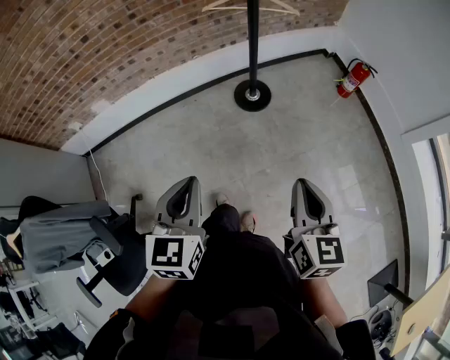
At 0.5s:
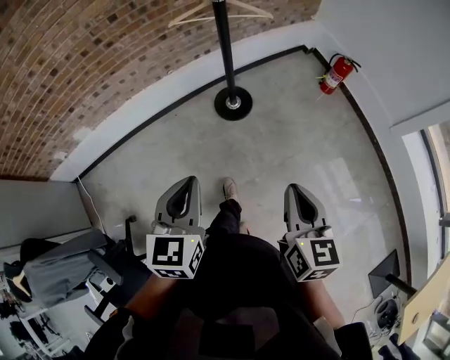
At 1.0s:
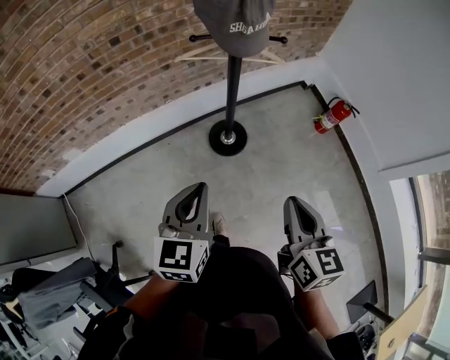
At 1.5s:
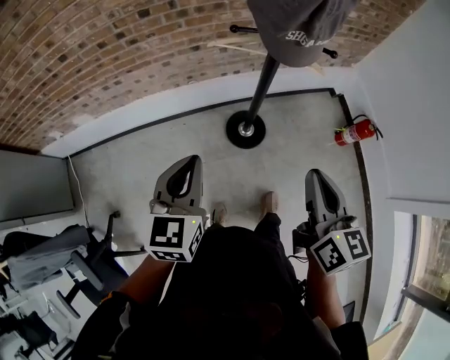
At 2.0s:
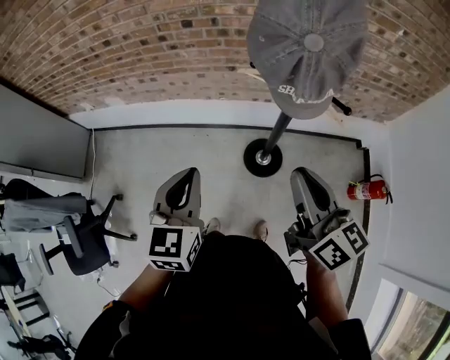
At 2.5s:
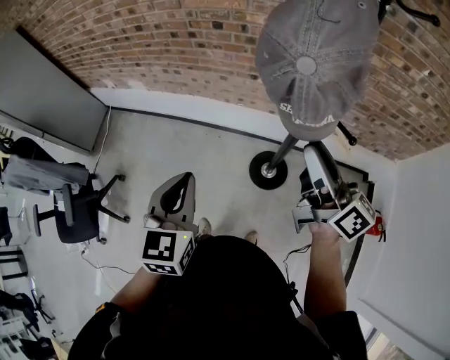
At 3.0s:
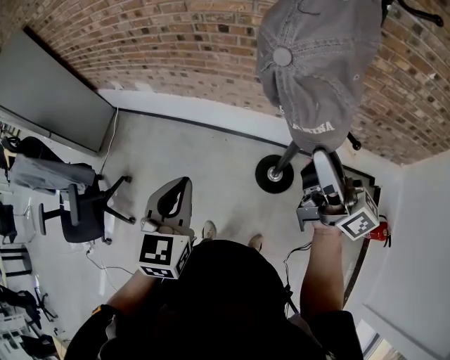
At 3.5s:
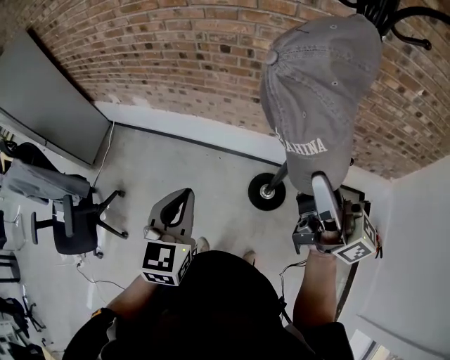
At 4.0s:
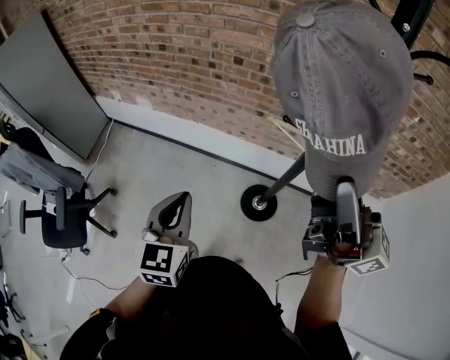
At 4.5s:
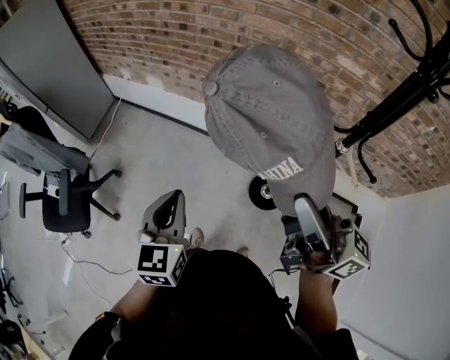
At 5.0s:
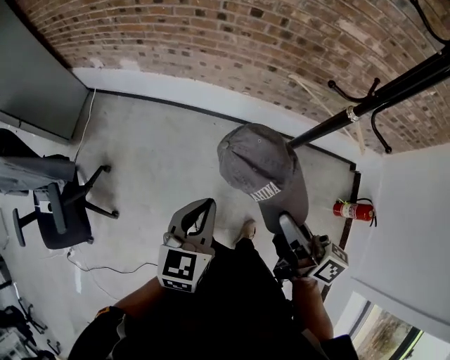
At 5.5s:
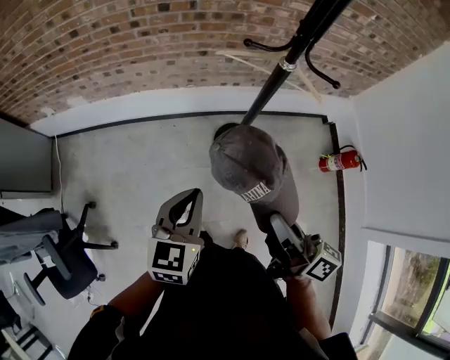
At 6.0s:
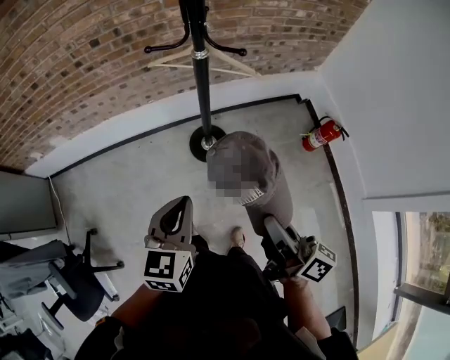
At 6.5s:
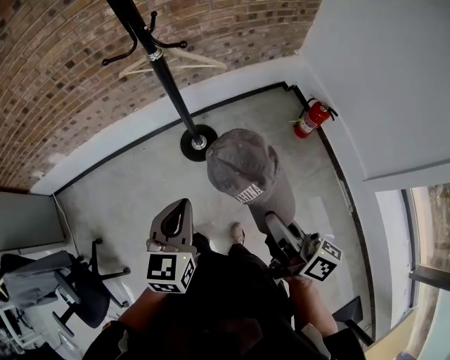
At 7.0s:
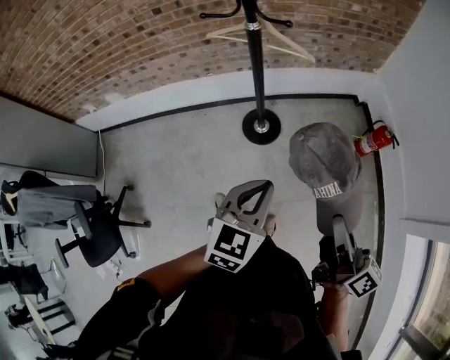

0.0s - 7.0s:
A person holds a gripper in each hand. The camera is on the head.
0.0s - 2.0s: Both grippers are carried some 50 cm. The left gripper swivels about 20 degrees, while the right gripper swivels approximately 50 degrees.
2.0s - 3.5s: The right gripper travels upward by some 10 cm, points its fingers roughly 30 degrees further upward, and opens and closes again.
3.5s - 5.0s: The left gripper moves to the left and downward, approximately 15 cm. Meanwhile the right gripper heads to the left and downward, covering roughly 25 cm, and tips its fingers downward by some 30 degrees.
5.0s - 7.0s: The pair of grippers is taken some 40 cm. The left gripper changes its angle by approximately 30 degrees, while the right gripper turns by approximately 30 degrees.

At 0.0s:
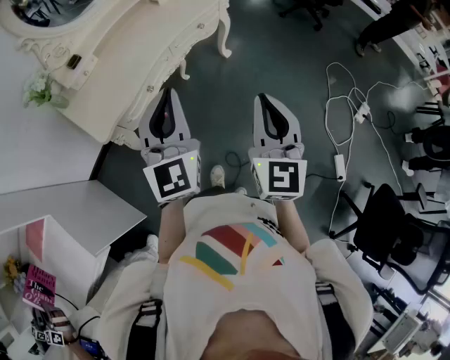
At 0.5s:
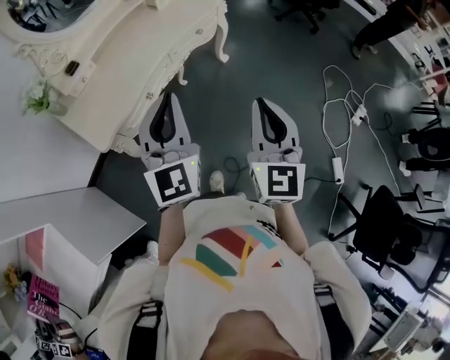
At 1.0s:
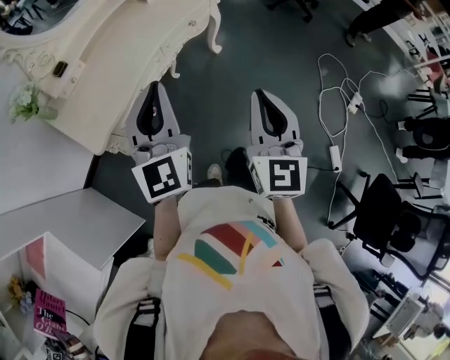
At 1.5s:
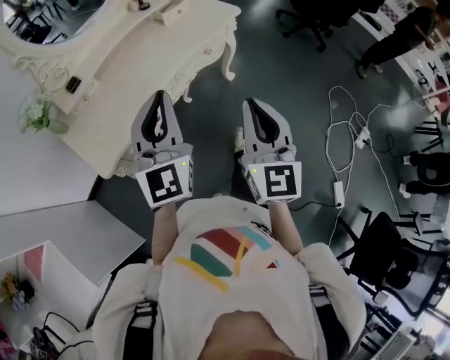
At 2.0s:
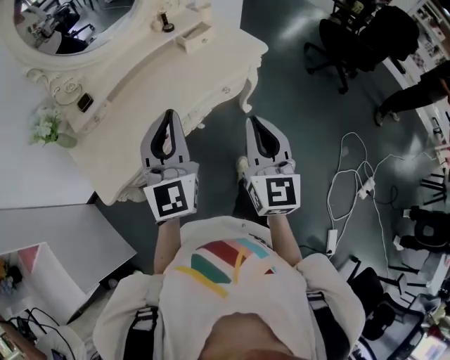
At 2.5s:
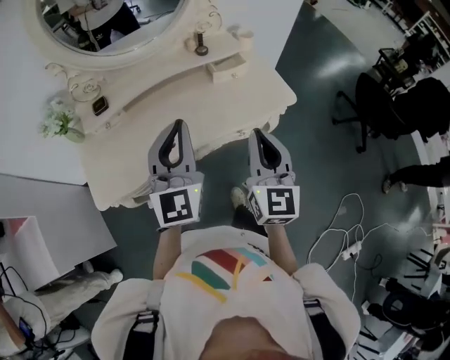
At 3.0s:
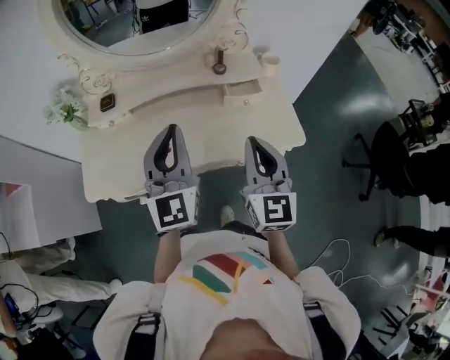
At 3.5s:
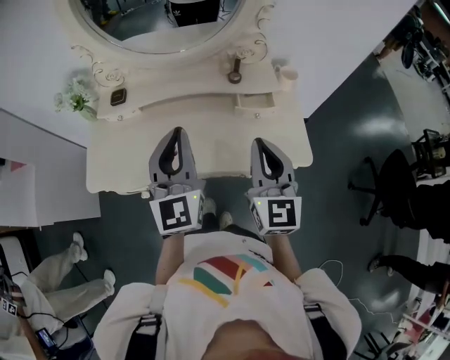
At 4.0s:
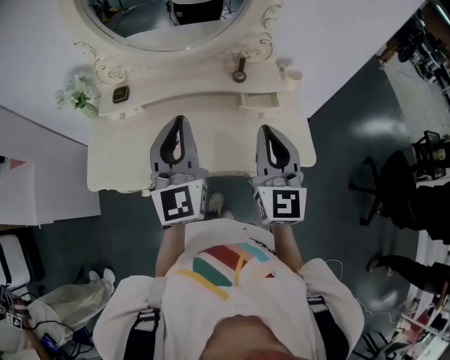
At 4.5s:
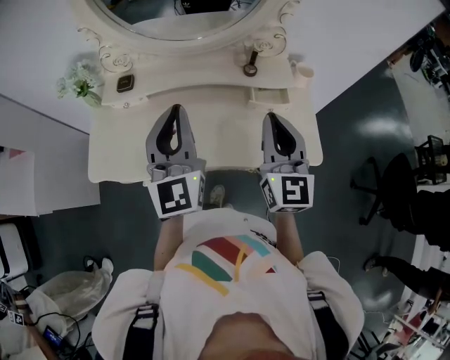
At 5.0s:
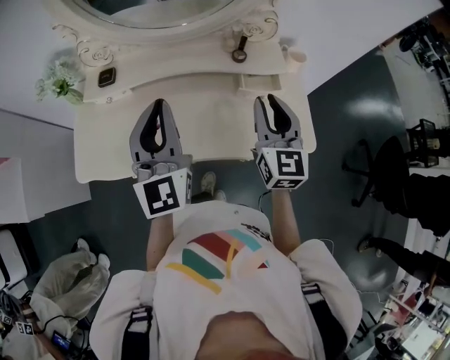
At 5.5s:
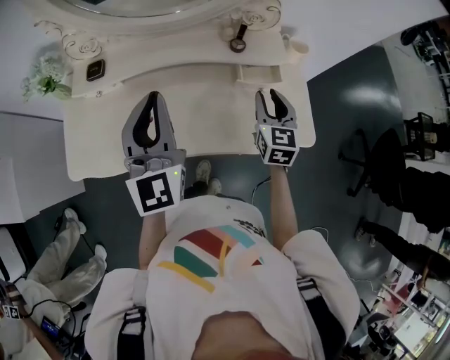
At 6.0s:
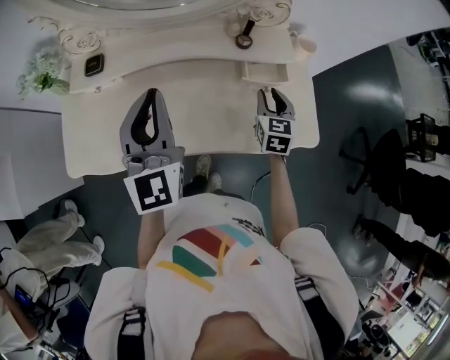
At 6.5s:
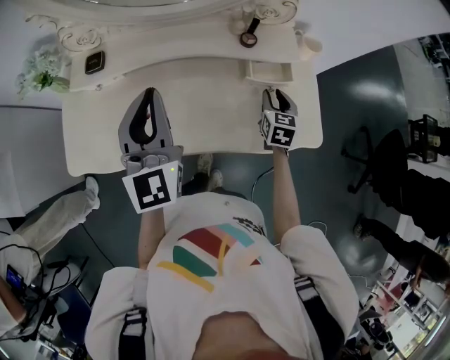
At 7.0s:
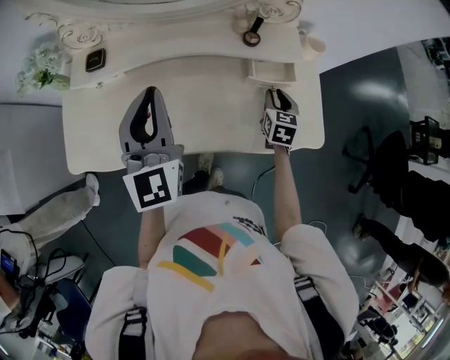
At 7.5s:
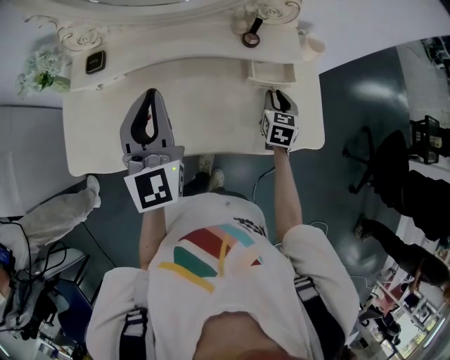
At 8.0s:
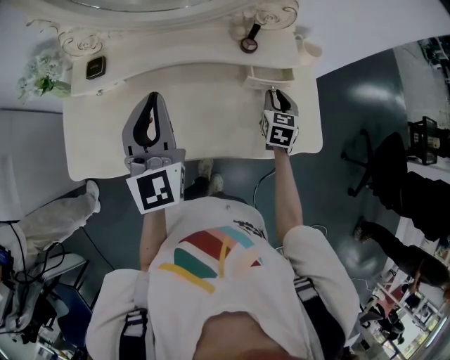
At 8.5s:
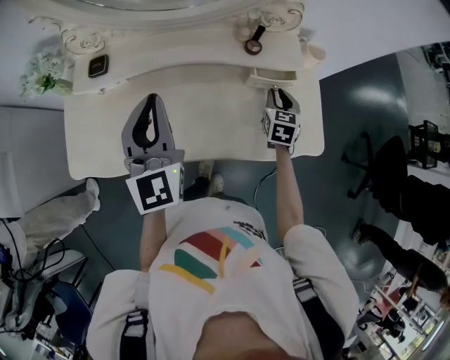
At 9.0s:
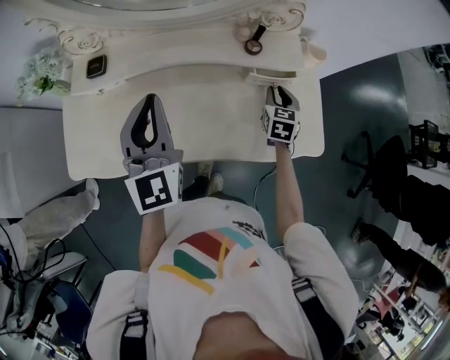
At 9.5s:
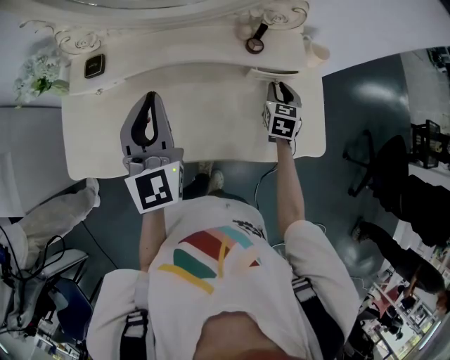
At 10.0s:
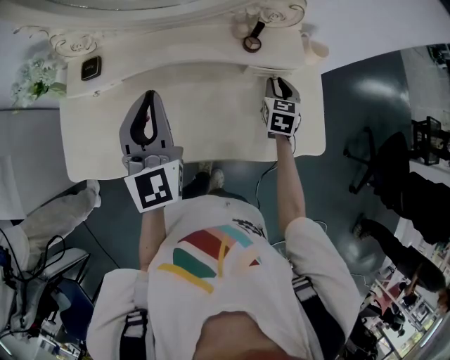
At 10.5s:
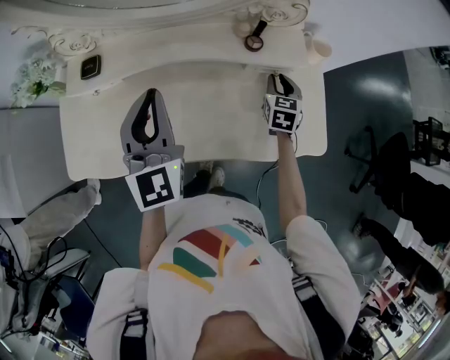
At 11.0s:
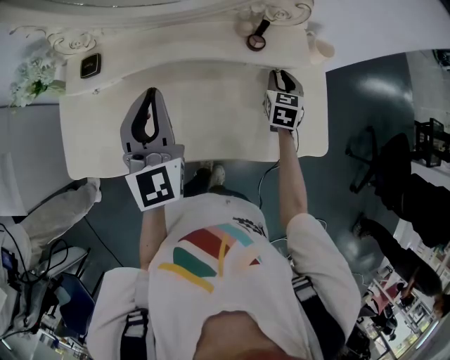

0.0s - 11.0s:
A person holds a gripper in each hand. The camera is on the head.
0.0s - 2.0s: The two grippers go roughly 25 cm forward.
2.0s - 3.5s: The left gripper ends up about 20 cm from where it was, and changes its angle by about 40 degrees. Meanwhile the right gripper ends up roughly 30 cm from where it was, and turns by roughly 40 degrees.
3.5s - 5.5s: The left gripper shifts approximately 10 cm forward; the right gripper heads downward and forward, covering about 20 cm, swivels roughly 20 degrees, and opens up.
5.5s - 7.5s: The right gripper shifts approximately 10 cm downward.
7.5s - 9.0s: The grippers move only a little.
9.0s - 11.0s: The grippers stay close to where they were, moving slightly.

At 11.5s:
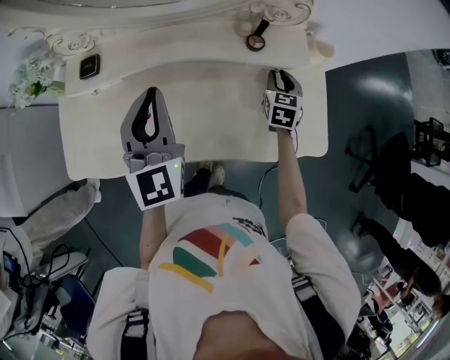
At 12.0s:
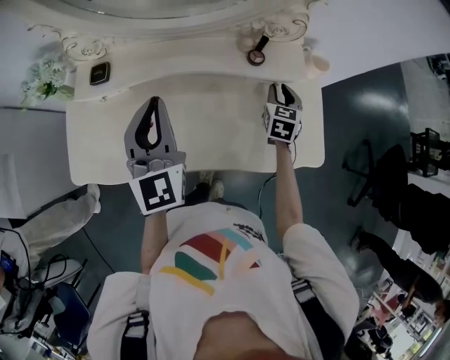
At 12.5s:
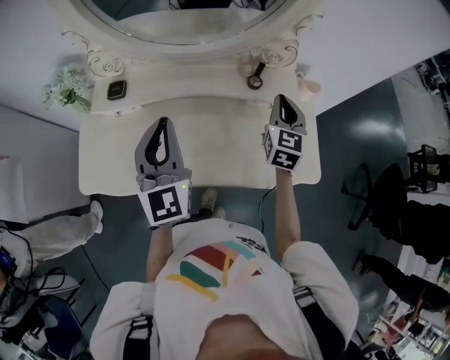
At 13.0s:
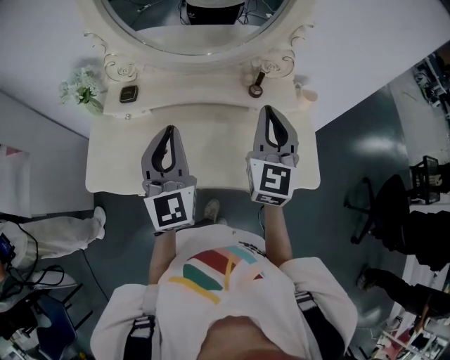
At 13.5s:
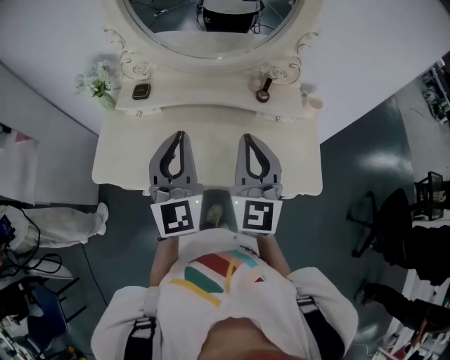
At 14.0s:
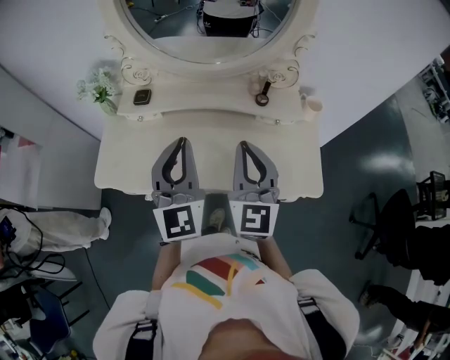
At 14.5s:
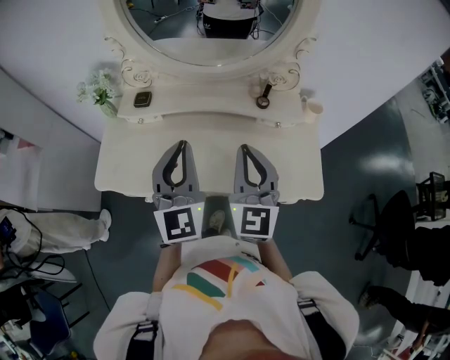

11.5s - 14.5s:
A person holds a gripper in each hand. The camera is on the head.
11.5s - 13.0s: The right gripper shifts approximately 35 cm upward and backward, and angles its fingers upward, by about 40 degrees. Meanwhile the left gripper travels backward and upward by some 10 cm.
13.0s - 14.5s: The right gripper heads backward and to the left, covering roughly 10 cm.

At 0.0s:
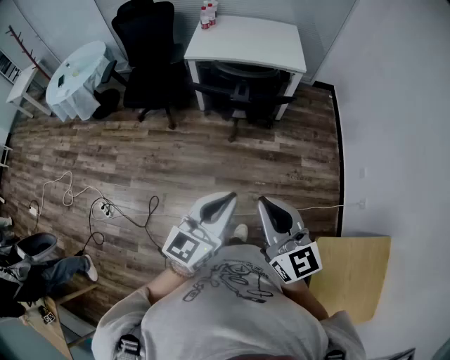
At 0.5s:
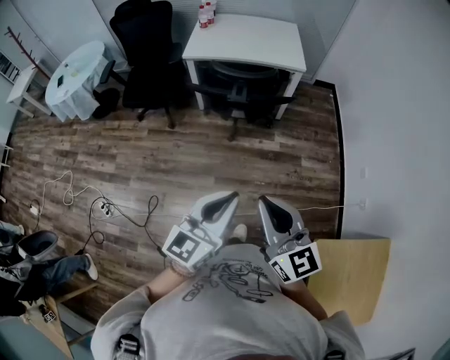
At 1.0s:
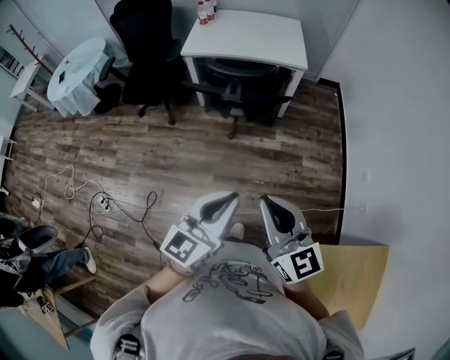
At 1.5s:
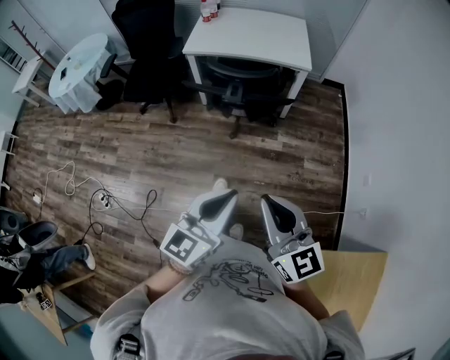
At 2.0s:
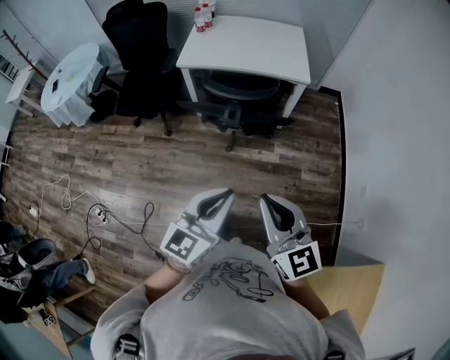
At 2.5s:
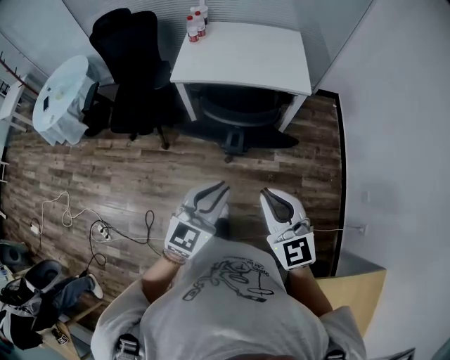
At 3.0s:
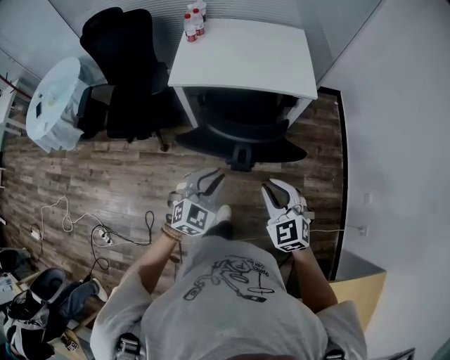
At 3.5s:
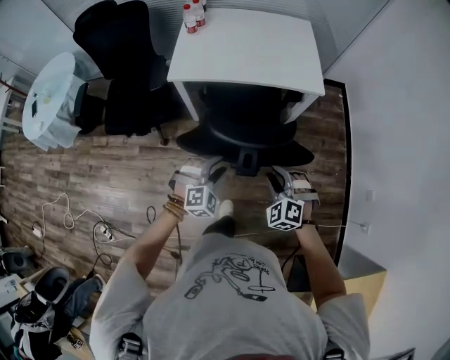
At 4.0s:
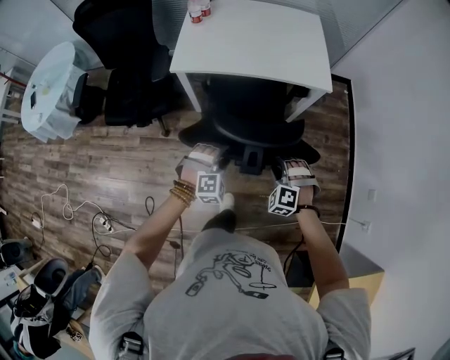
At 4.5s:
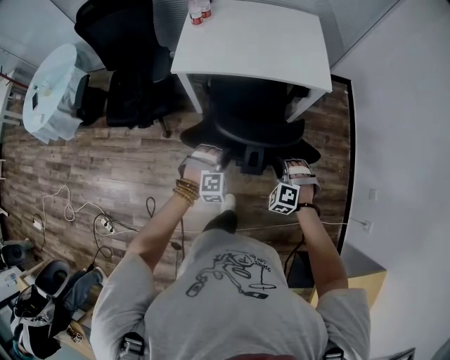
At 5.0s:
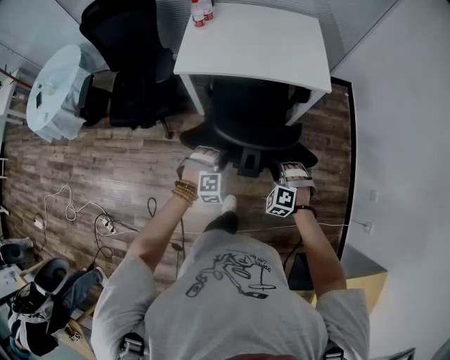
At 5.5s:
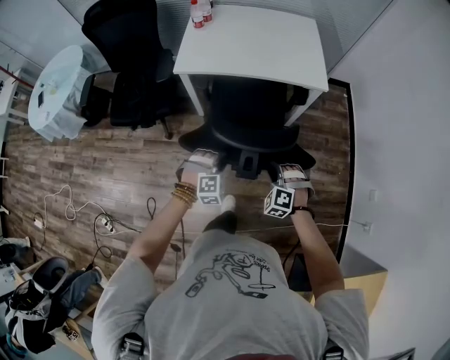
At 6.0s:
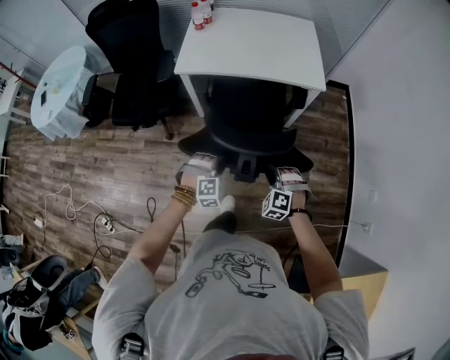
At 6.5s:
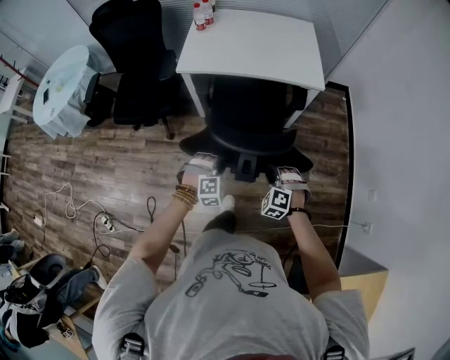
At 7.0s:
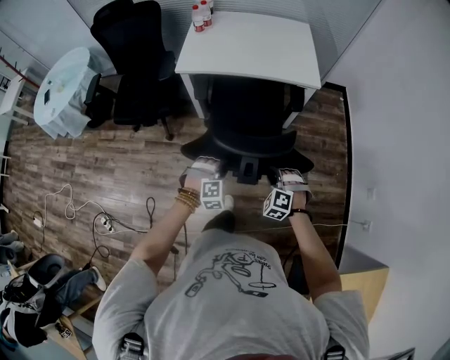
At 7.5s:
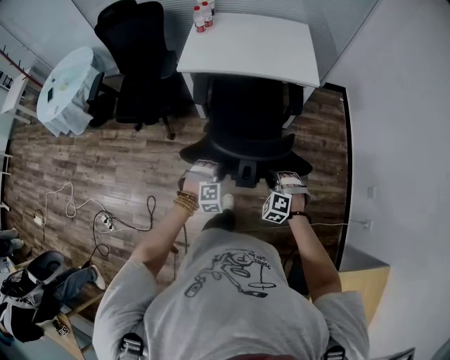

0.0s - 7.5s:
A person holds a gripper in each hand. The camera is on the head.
0.0s - 2.0s: The grippers both shift forward by approximately 20 cm.
2.0s - 4.0s: The grippers both shift forward and downward by some 50 cm. The left gripper rotates around the line of its fingers by some 60 degrees, clockwise from behind, and opens up. Meanwhile the right gripper points its fingers roughly 50 degrees further downward, and opens.
4.0s - 5.5s: The grippers both shift backward by about 5 cm. The left gripper closes its fingers.
5.5s - 7.5s: The grippers both shift backward by approximately 10 cm.
